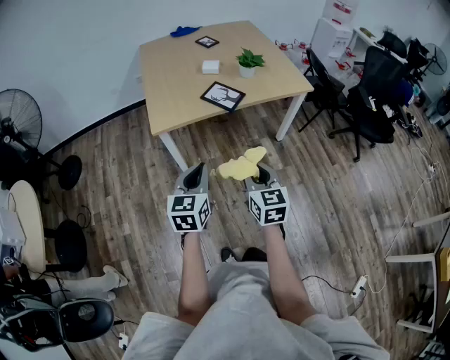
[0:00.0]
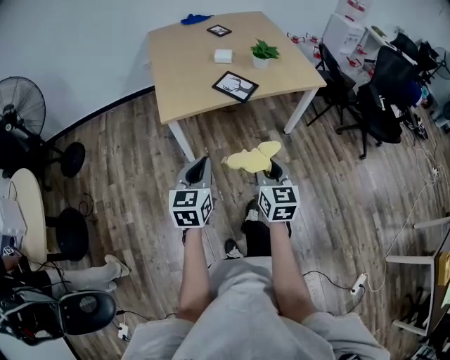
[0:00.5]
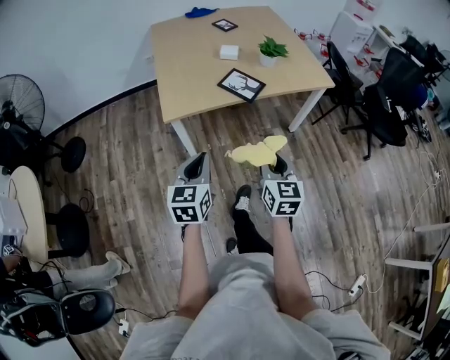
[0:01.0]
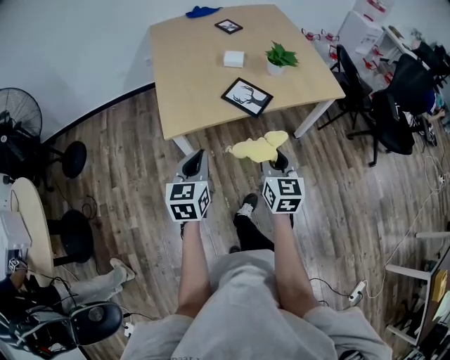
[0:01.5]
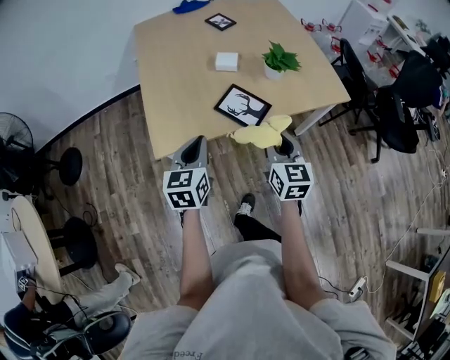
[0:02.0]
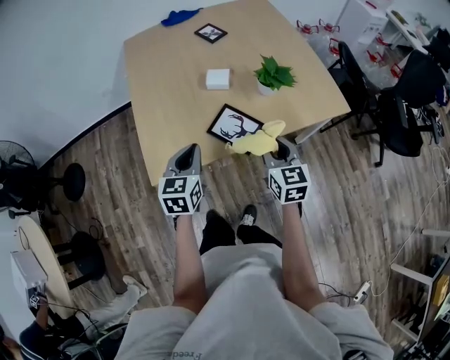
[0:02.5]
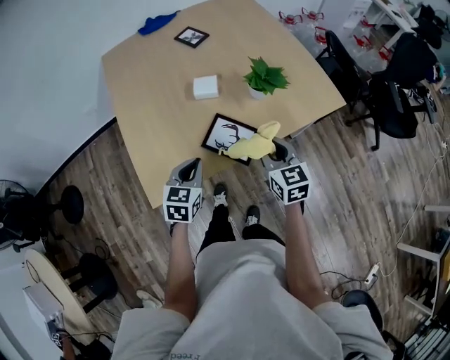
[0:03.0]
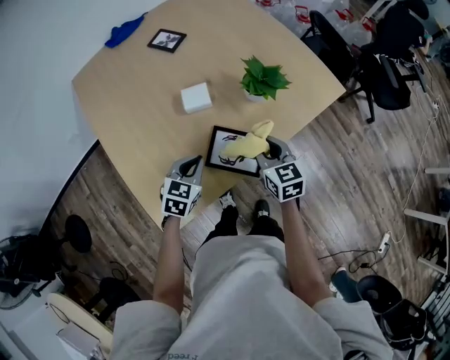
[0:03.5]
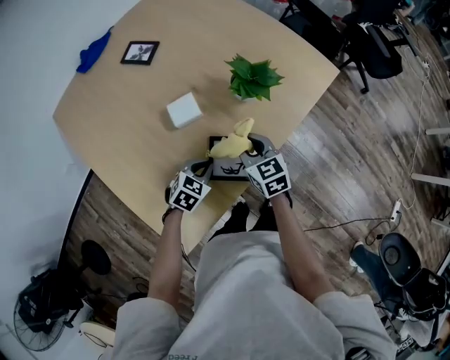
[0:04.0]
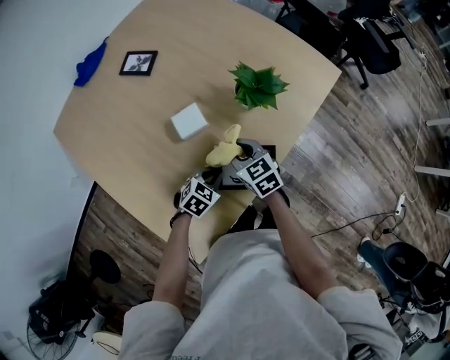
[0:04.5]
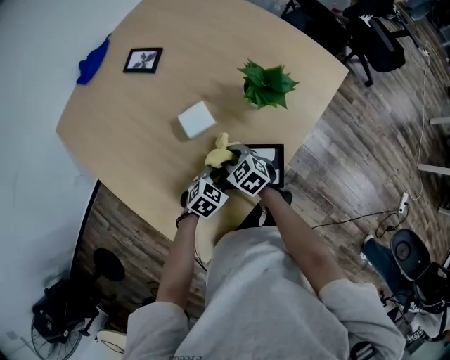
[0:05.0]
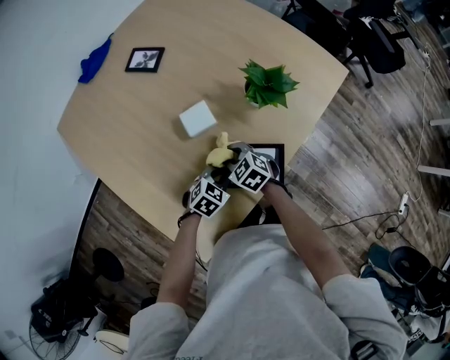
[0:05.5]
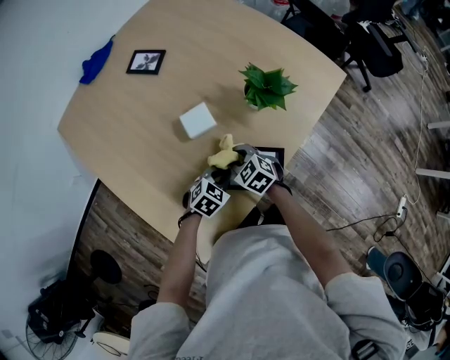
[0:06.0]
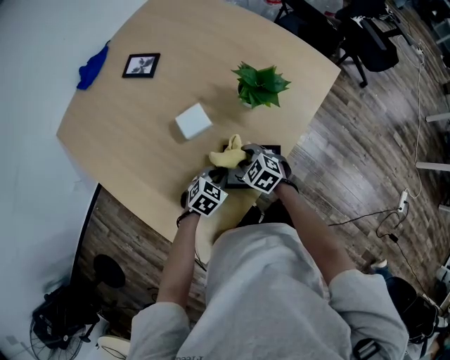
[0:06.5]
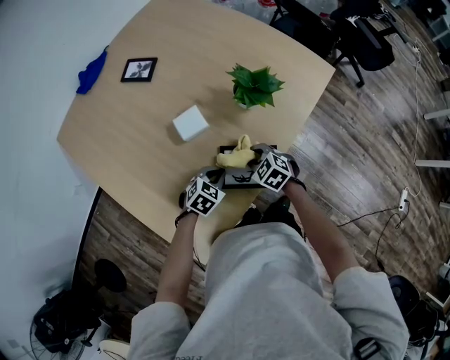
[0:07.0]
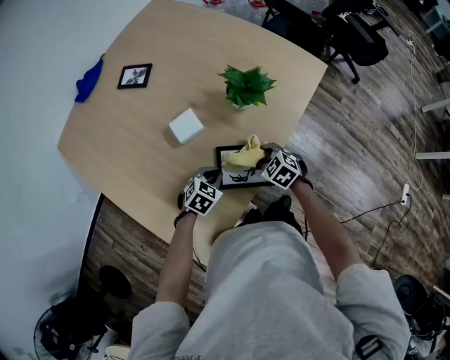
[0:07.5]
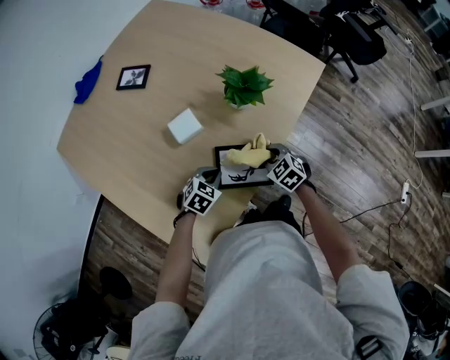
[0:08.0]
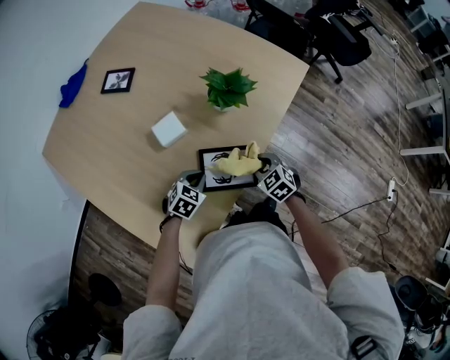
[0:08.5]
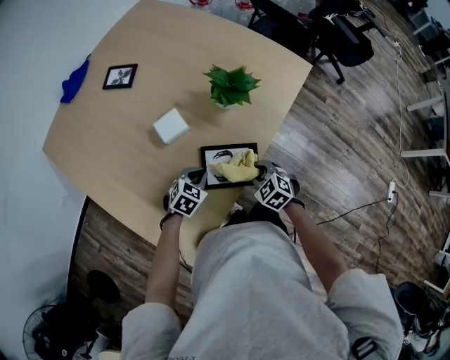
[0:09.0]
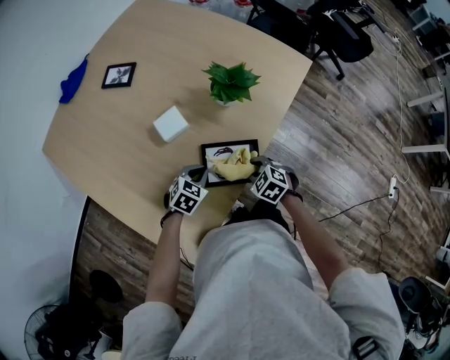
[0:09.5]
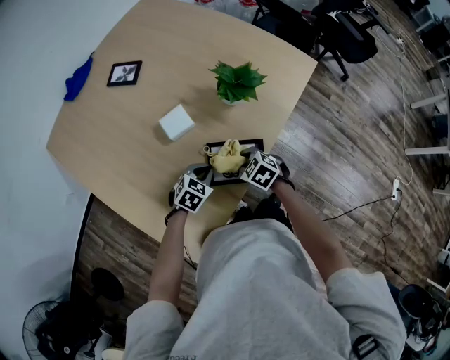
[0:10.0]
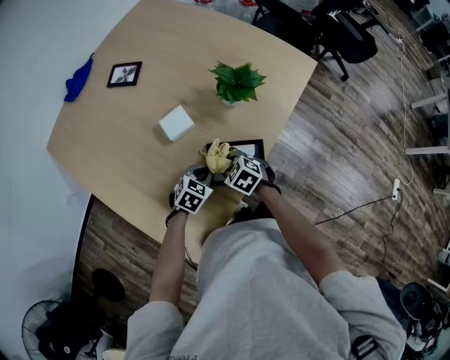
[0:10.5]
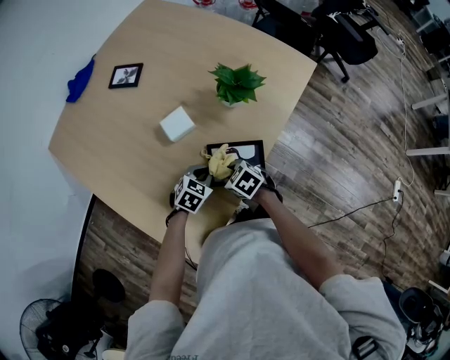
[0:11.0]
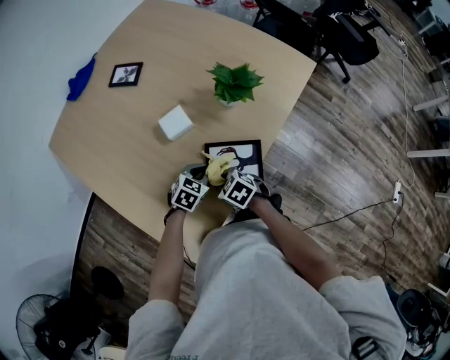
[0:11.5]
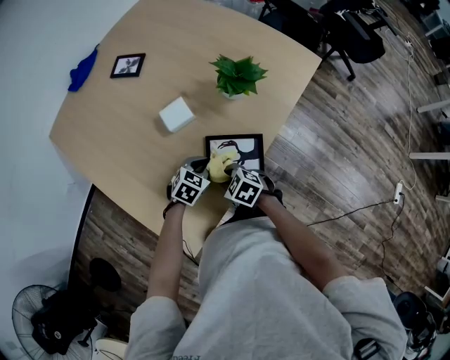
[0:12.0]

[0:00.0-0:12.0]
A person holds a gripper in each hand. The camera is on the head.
0:00.0 to 0:02.0: The grippers both shift forward by some 30 cm.
0:02.0 to 0:04.0: The left gripper ends up about 35 cm from where it was, and tilts its fingers some 30 degrees downward; the right gripper ends up some 30 cm from where it was.
0:04.0 to 0:06.0: The right gripper is displaced downward and to the left by approximately 15 cm, and changes its angle by roughly 30 degrees.
0:06.0 to 0:08.0: The right gripper travels to the right by some 15 cm.
0:08.0 to 0:10.0: The right gripper goes about 5 cm to the left.
0:10.0 to 0:12.0: The right gripper moves to the left and backward, roughly 10 cm.

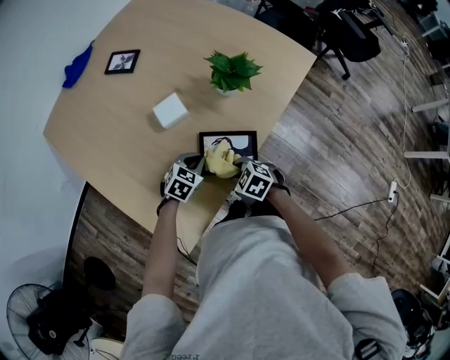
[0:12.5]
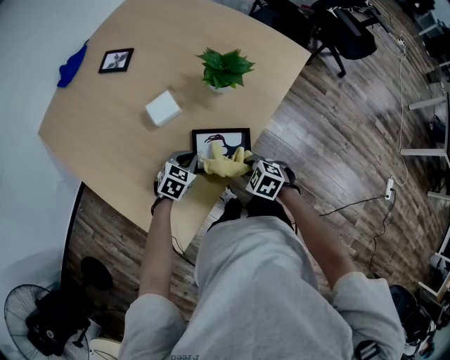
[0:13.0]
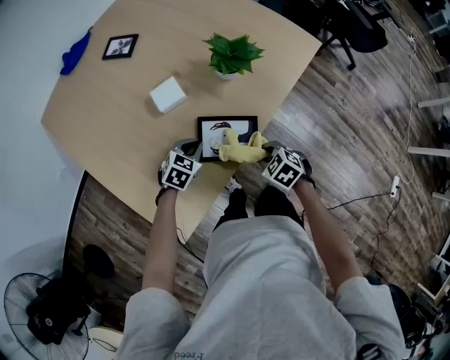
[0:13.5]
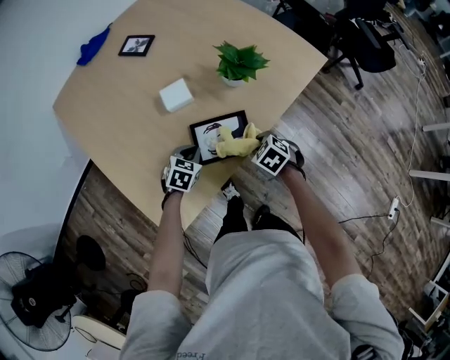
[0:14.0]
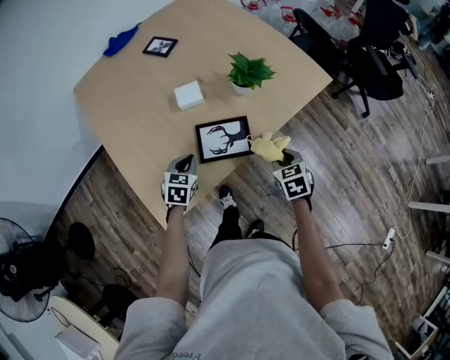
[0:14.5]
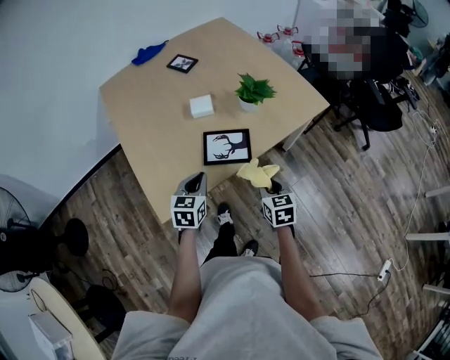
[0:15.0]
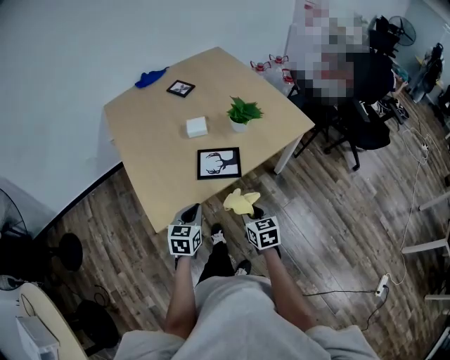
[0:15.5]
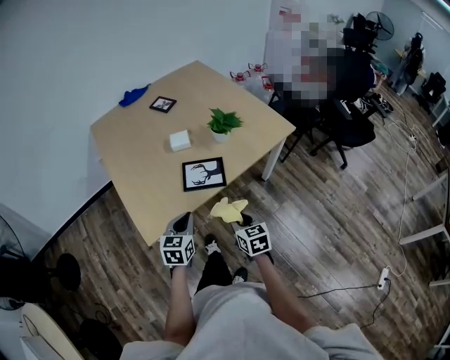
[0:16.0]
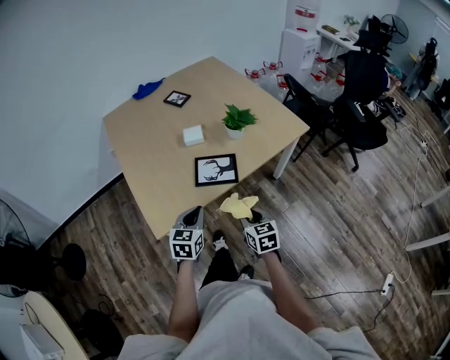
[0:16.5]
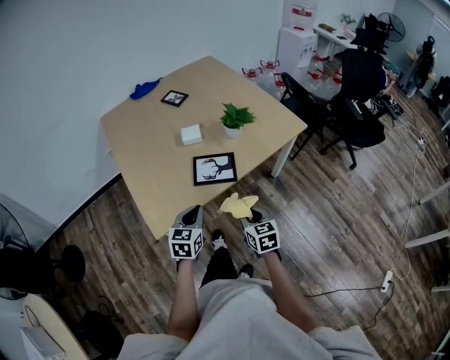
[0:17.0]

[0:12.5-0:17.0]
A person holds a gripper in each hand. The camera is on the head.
0:12.5 to 0:14.5: The right gripper is displaced to the right and upward by roughly 20 cm, and swivels some 30 degrees, while the left gripper travels backward and to the left by approximately 10 cm, and rotates roughly 40 degrees.
0:14.5 to 0:17.0: The left gripper is displaced backward and upward by roughly 20 cm. The right gripper is displaced backward and to the left by approximately 15 cm, and rotates approximately 20 degrees.

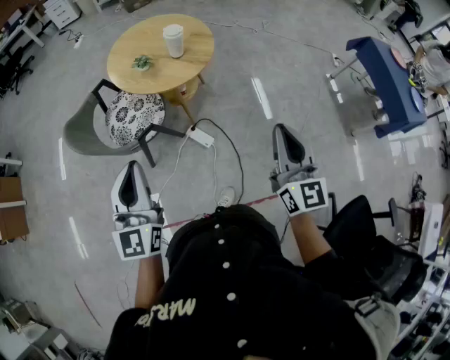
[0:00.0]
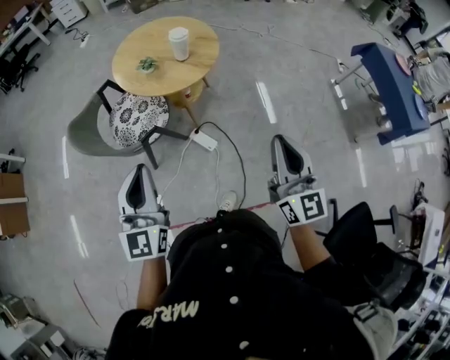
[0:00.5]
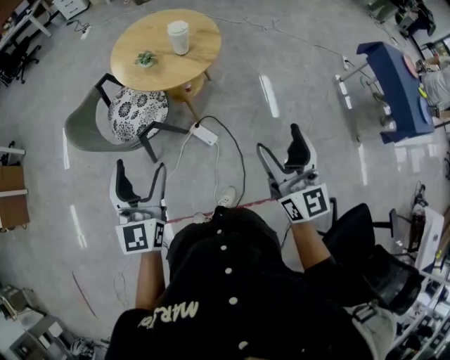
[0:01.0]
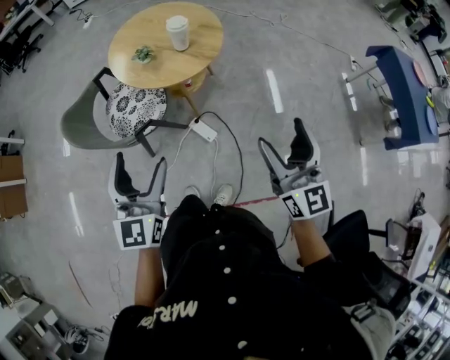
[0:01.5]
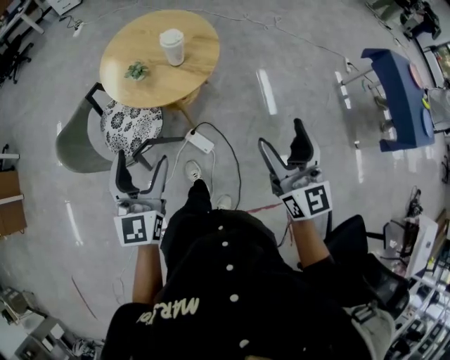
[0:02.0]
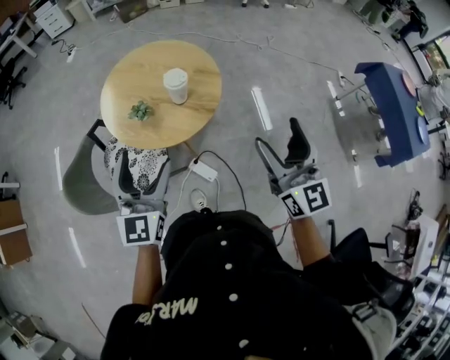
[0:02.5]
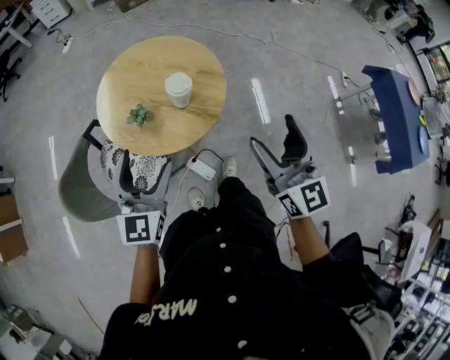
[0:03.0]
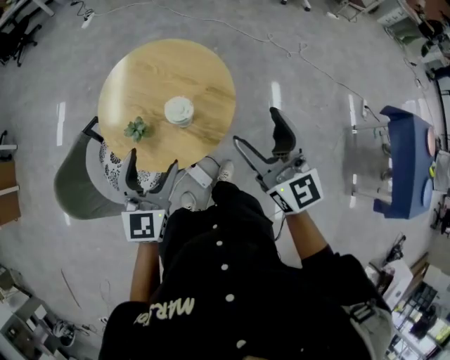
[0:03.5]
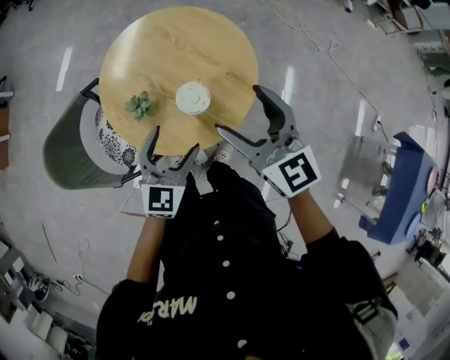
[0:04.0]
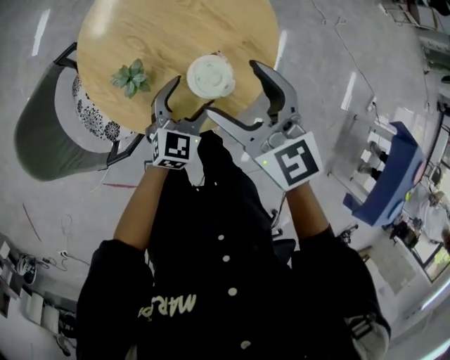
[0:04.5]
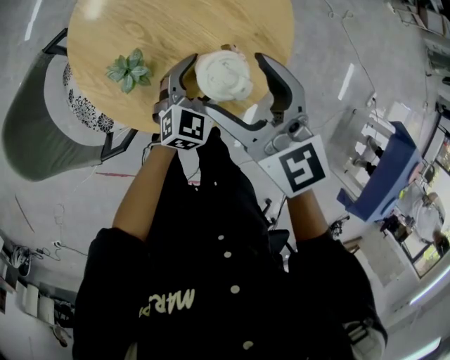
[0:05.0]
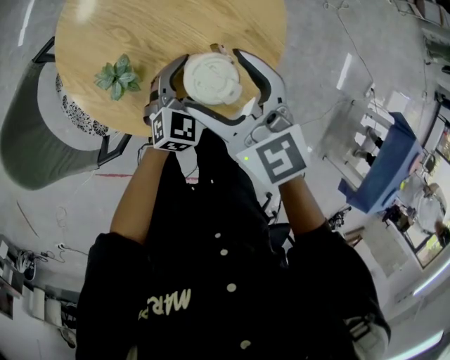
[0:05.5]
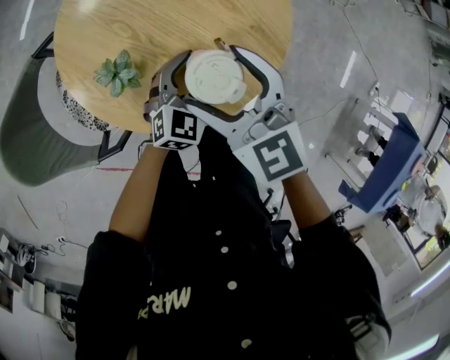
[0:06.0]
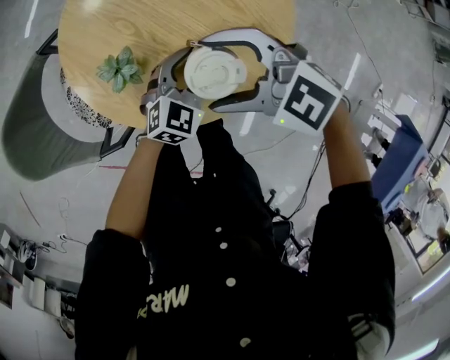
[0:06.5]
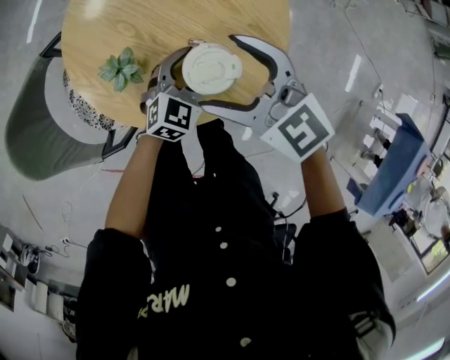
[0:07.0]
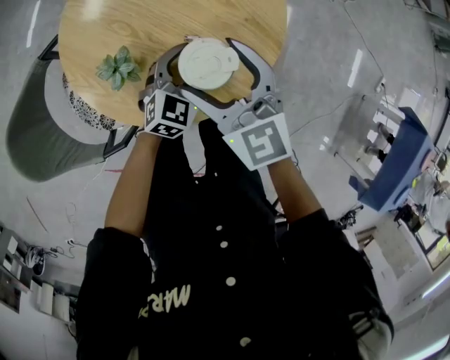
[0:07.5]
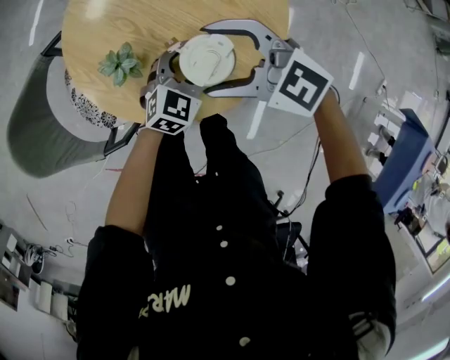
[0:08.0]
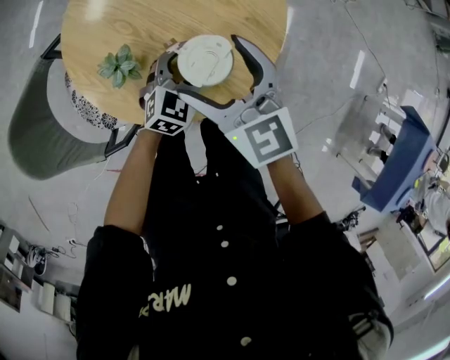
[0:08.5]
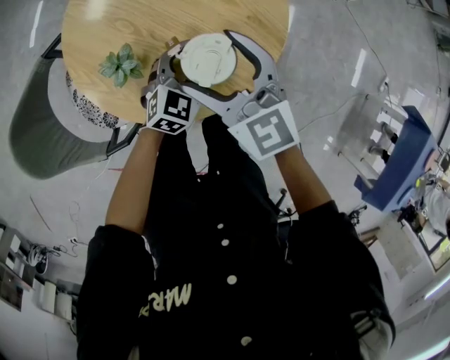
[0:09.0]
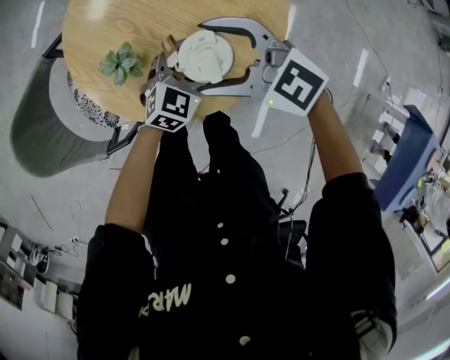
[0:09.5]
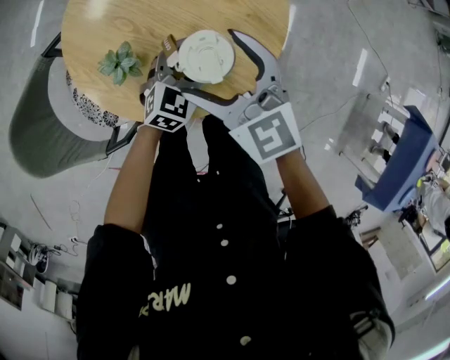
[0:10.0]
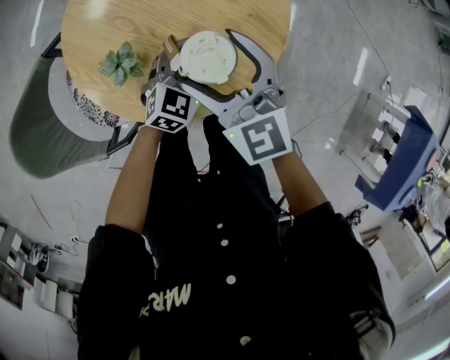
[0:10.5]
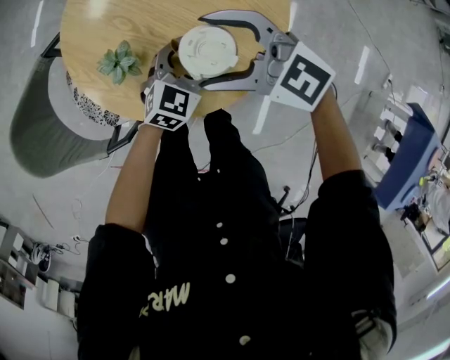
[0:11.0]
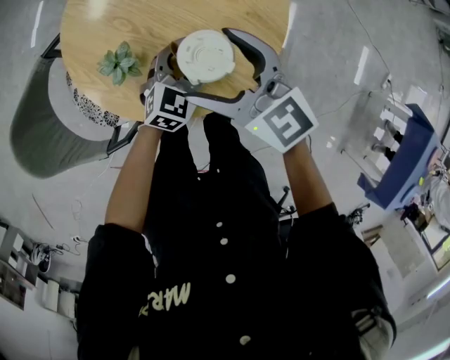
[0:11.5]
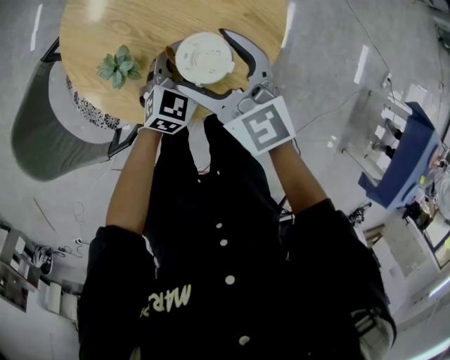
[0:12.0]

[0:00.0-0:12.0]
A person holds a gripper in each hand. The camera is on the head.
0:00.0 to 0:02.0: Both grippers travel together forward, roughly 15 cm. The left gripper opens. The right gripper opens up.
0:02.0 to 0:04.0: The right gripper heads forward, covering some 50 cm, and turns by approximately 40 degrees, while the left gripper travels forward and downward by some 40 cm, and rotates approximately 20 degrees.
0:04.0 to 0:06.0: The left gripper is displaced downward and forward by roughly 20 cm, while the right gripper travels downward and to the left by approximately 20 cm.
0:06.0 to 0:08.0: The right gripper turns by roughly 40 degrees.
0:08.0 to 0:10.0: The right gripper rotates some 40 degrees.
